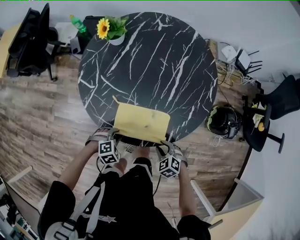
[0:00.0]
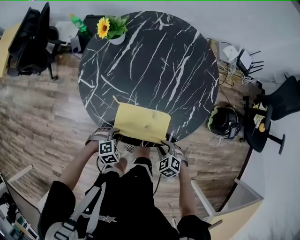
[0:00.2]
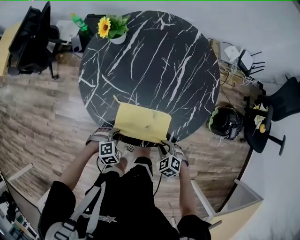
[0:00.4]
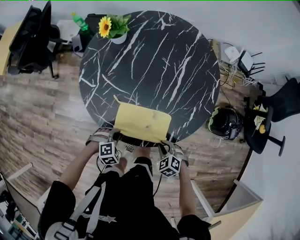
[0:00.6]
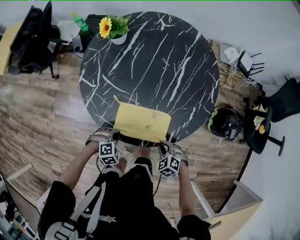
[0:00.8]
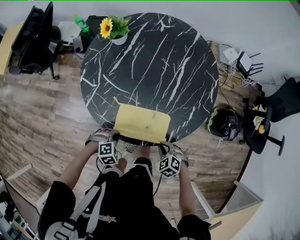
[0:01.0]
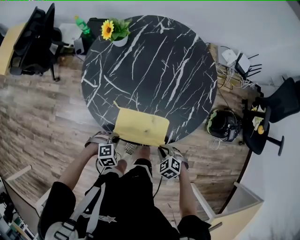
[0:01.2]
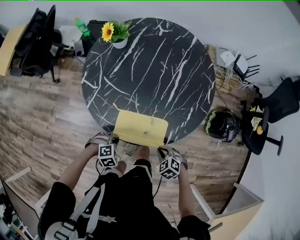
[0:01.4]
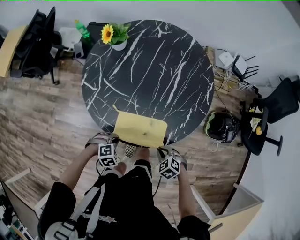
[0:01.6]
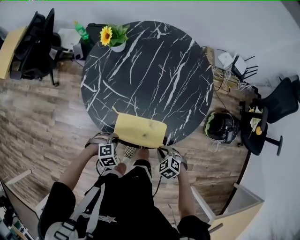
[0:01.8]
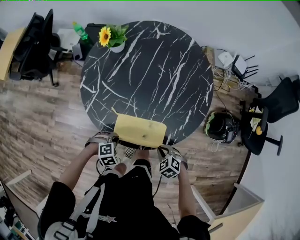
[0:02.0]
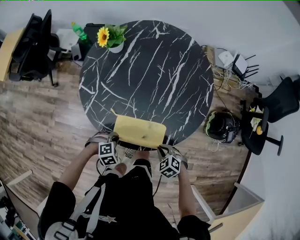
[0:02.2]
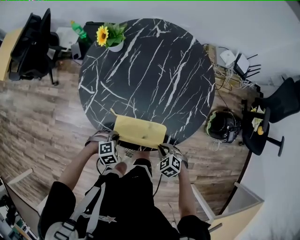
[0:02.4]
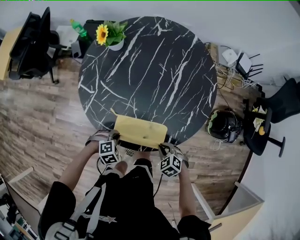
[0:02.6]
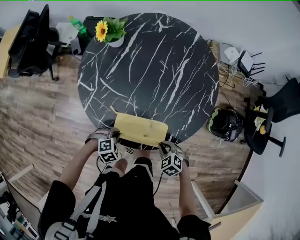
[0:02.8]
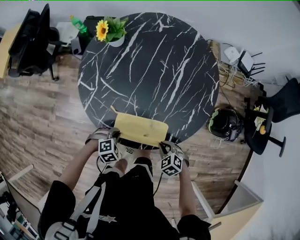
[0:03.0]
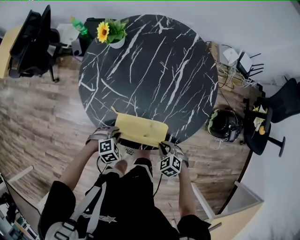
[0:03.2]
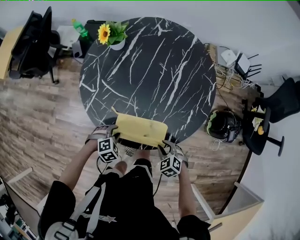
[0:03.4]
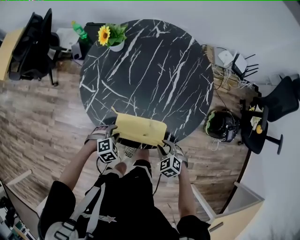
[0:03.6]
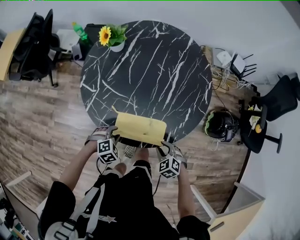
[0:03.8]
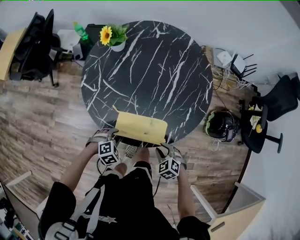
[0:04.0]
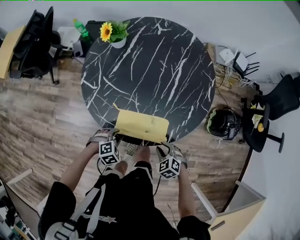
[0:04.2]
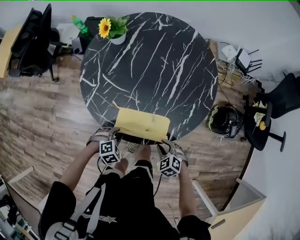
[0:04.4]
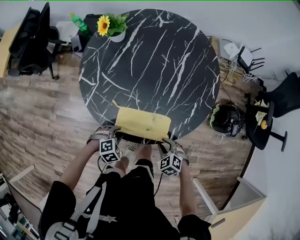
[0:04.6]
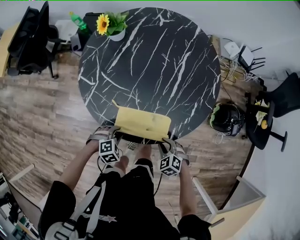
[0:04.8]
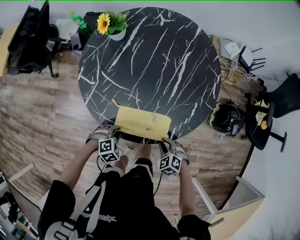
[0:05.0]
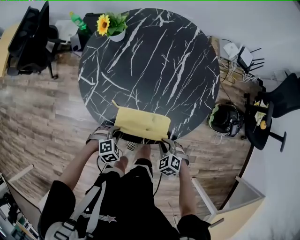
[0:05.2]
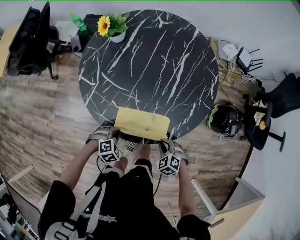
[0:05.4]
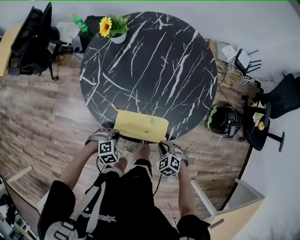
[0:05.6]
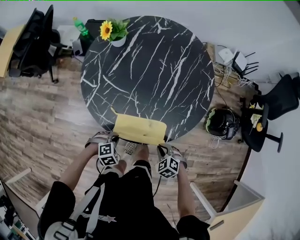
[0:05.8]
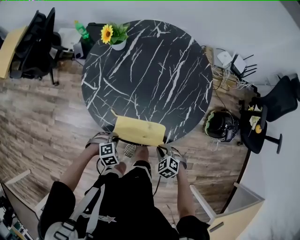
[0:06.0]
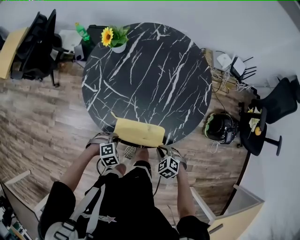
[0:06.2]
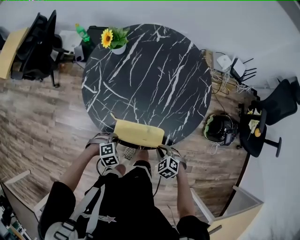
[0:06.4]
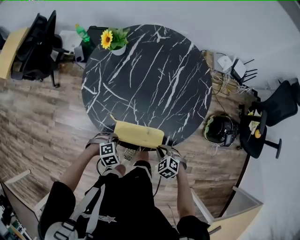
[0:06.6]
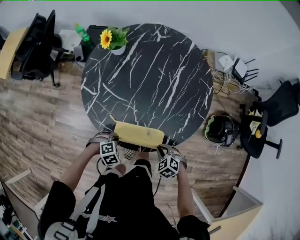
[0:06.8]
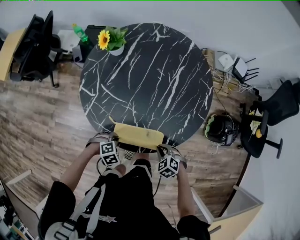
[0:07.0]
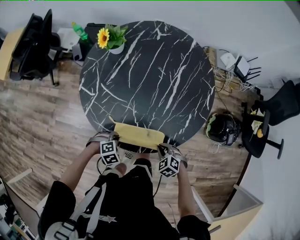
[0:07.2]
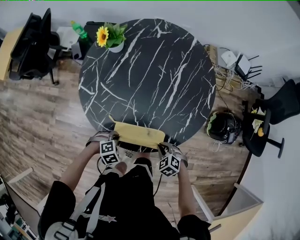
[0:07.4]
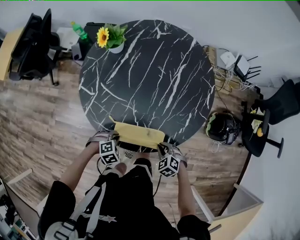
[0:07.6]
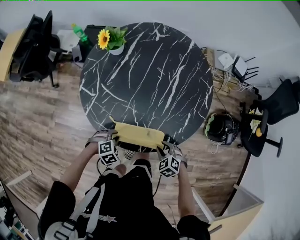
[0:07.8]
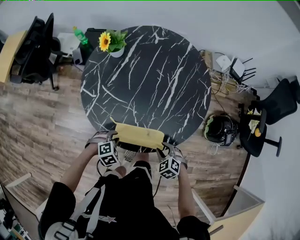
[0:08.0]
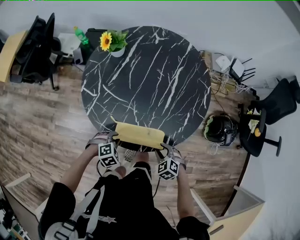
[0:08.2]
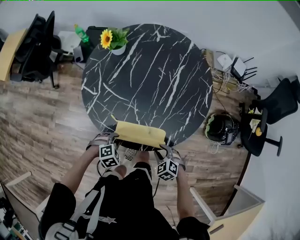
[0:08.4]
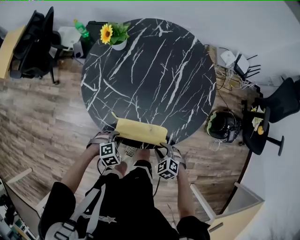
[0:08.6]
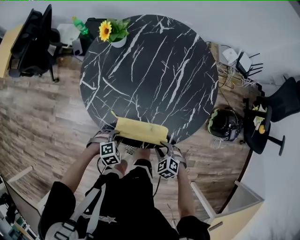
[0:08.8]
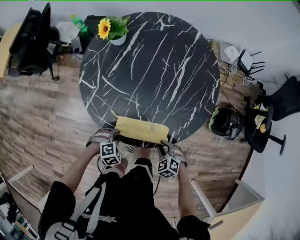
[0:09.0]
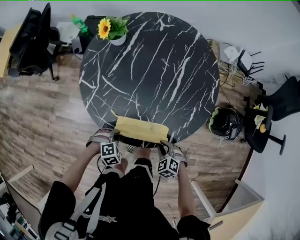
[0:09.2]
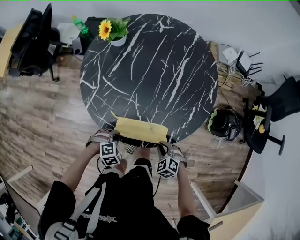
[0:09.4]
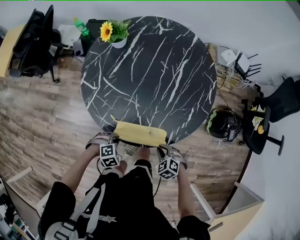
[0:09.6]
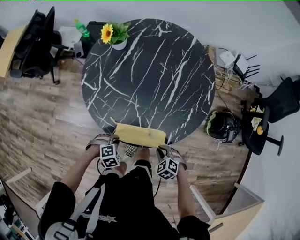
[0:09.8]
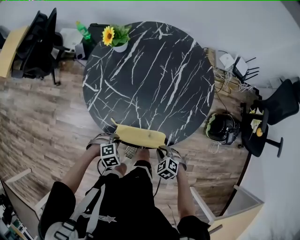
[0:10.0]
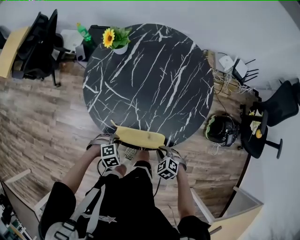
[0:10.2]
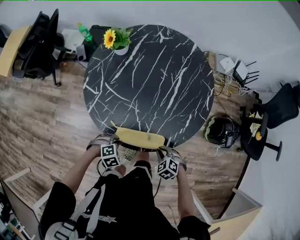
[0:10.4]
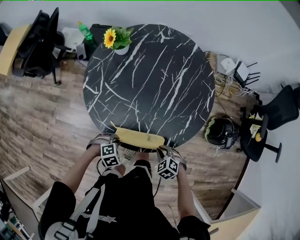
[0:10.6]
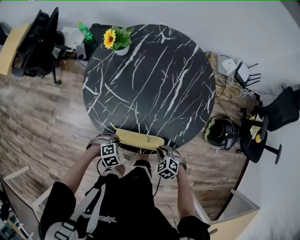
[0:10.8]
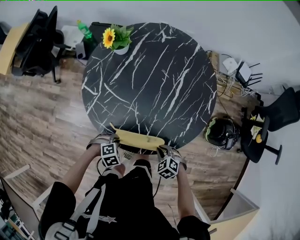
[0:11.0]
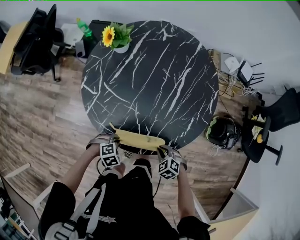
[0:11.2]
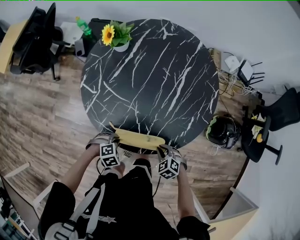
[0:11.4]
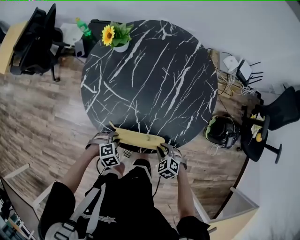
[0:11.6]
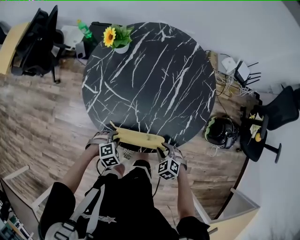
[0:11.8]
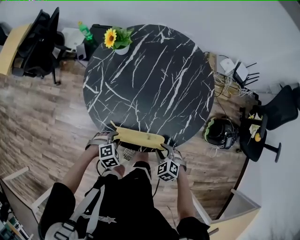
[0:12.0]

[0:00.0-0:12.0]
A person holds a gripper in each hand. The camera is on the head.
0:00.0 to 0:01.6: The right gripper closes. The left gripper closes up.
0:01.6 to 0:03.0: The grippers make only small movements.
0:03.0 to 0:04.4: The right gripper opens, while the left gripper opens.
0:04.4 to 0:06.0: The left gripper closes its fingers, while the right gripper closes.
0:06.0 to 0:07.6: The right gripper moves some 5 cm.
0:07.6 to 0:12.0: The grippers make only small movements.

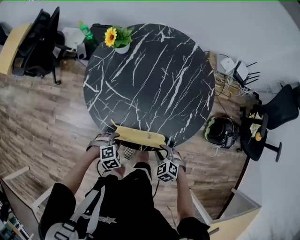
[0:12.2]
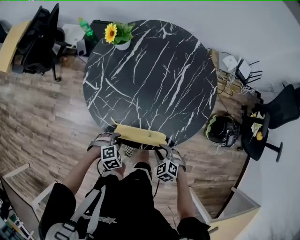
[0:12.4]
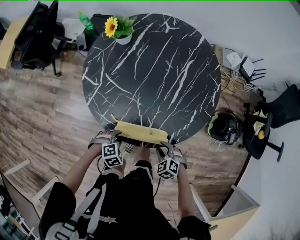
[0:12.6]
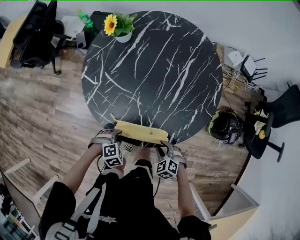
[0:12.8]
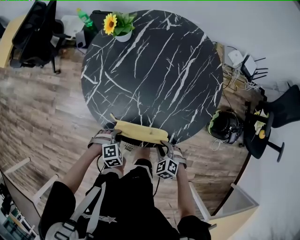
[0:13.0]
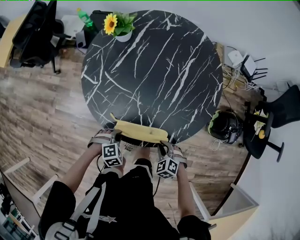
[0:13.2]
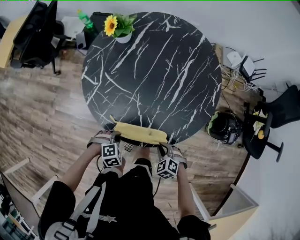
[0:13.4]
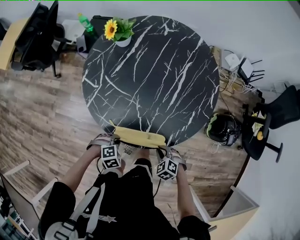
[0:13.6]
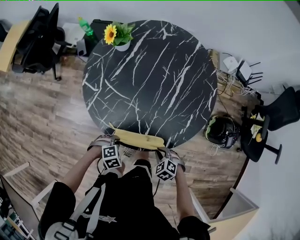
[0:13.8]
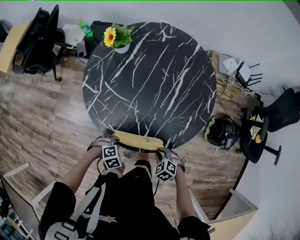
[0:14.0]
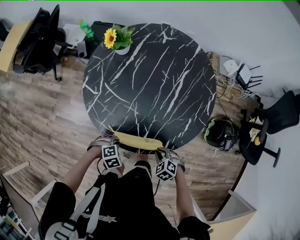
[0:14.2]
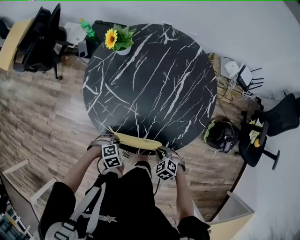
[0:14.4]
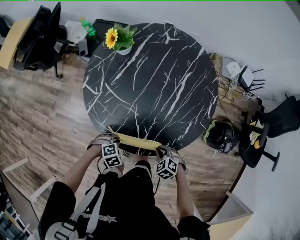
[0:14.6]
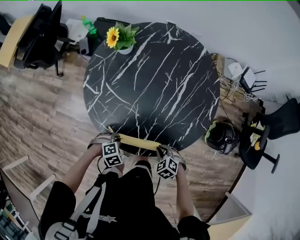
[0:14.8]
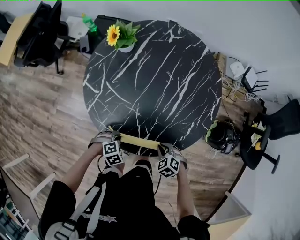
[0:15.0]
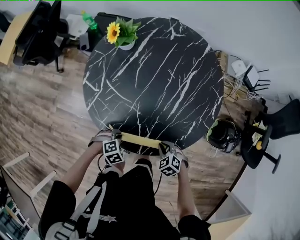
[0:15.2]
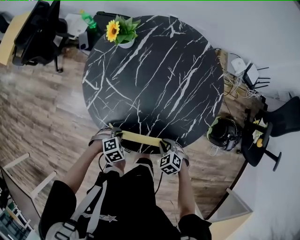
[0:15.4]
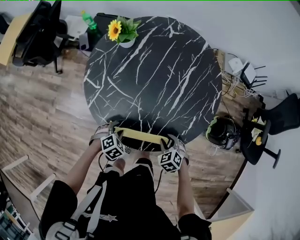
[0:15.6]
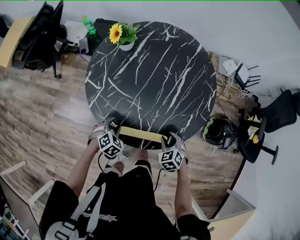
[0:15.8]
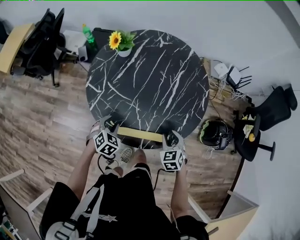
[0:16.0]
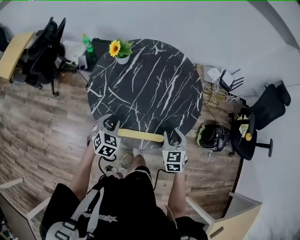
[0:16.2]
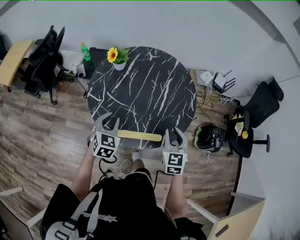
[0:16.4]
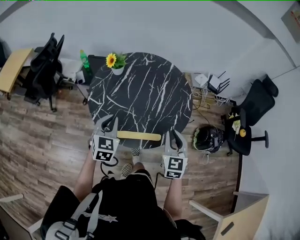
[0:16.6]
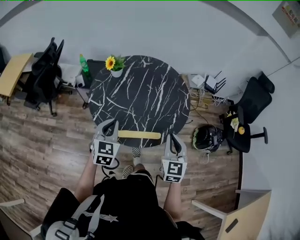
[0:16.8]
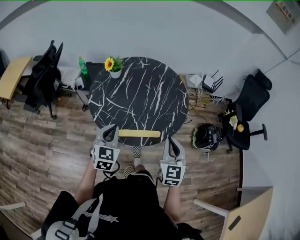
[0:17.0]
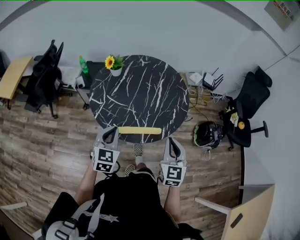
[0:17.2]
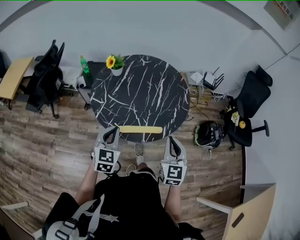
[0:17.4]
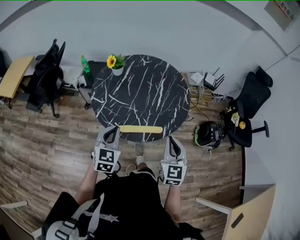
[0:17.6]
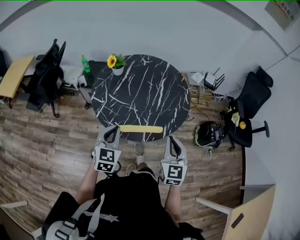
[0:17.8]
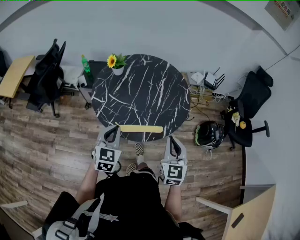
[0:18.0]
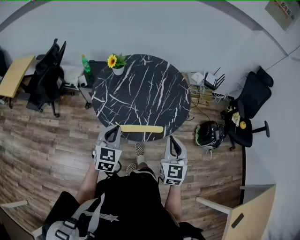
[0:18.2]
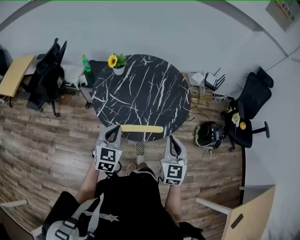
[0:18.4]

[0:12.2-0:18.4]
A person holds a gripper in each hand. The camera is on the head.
0:12.2 to 0:13.8: The right gripper closes.
0:13.8 to 0:15.4: The right gripper shifts by approximately 10 cm; the left gripper moves approximately 5 cm.
0:15.4 to 0:16.8: The two grippers go some 30 cm upward. The right gripper angles its fingers upward, by about 50 degrees, and opens and closes again. The left gripper angles its fingers upward, by roughly 60 degrees, and opens, then closes again.
0:16.8 to 0:18.4: Both grippers move backward, roughly 5 cm.

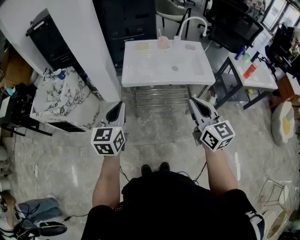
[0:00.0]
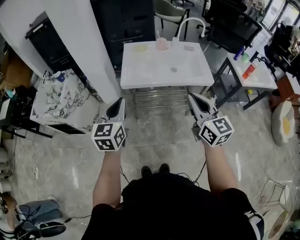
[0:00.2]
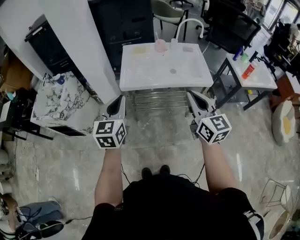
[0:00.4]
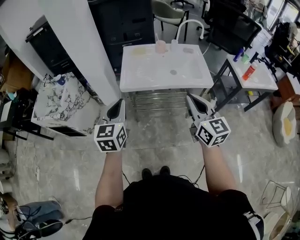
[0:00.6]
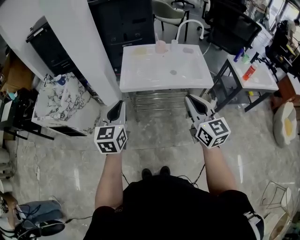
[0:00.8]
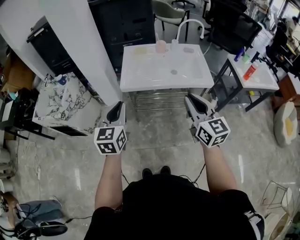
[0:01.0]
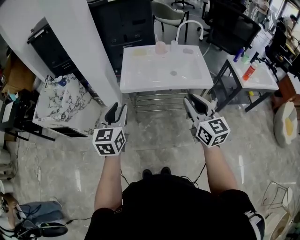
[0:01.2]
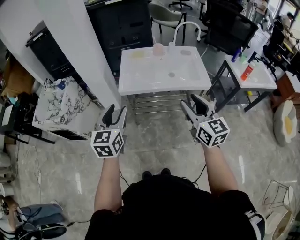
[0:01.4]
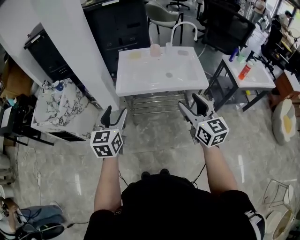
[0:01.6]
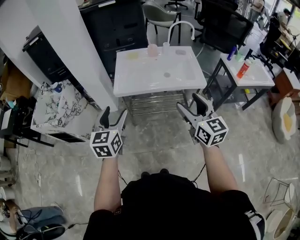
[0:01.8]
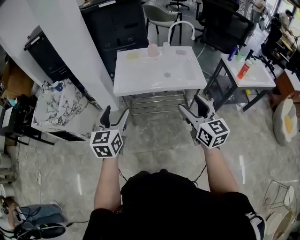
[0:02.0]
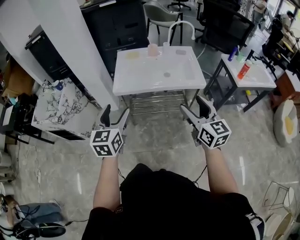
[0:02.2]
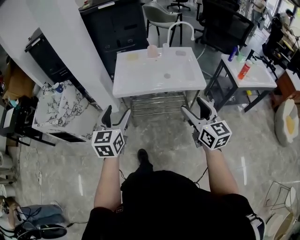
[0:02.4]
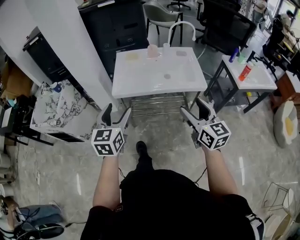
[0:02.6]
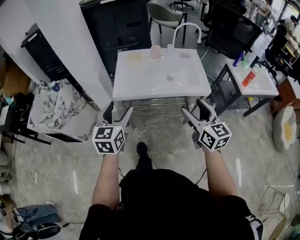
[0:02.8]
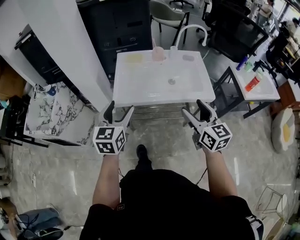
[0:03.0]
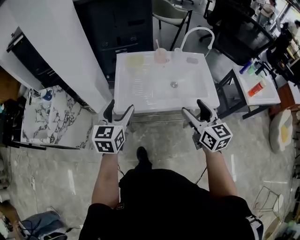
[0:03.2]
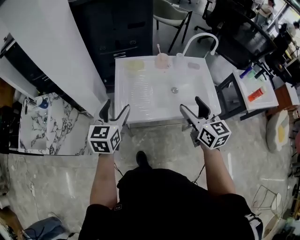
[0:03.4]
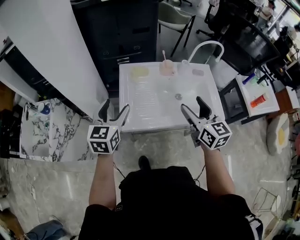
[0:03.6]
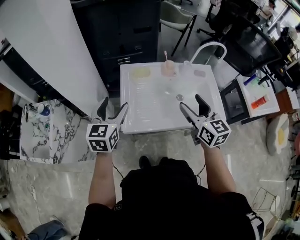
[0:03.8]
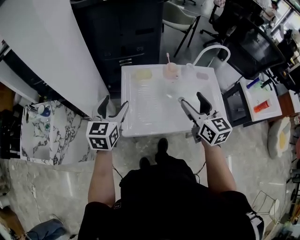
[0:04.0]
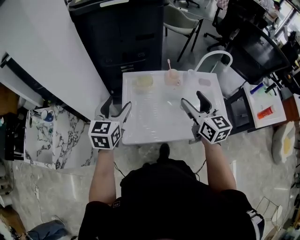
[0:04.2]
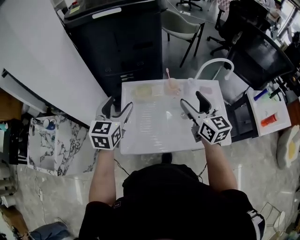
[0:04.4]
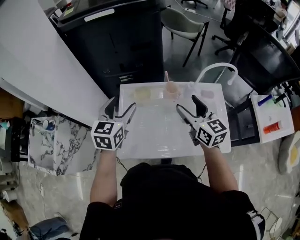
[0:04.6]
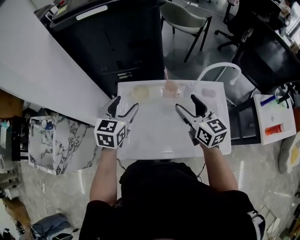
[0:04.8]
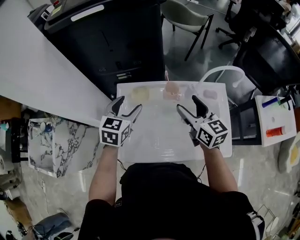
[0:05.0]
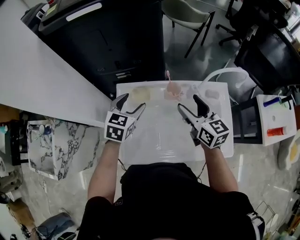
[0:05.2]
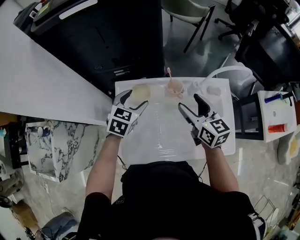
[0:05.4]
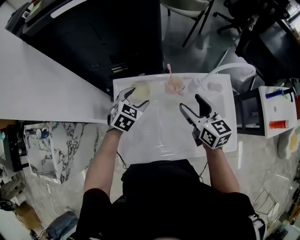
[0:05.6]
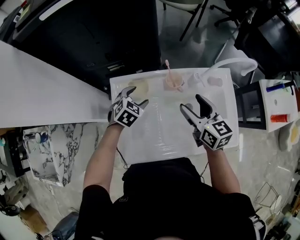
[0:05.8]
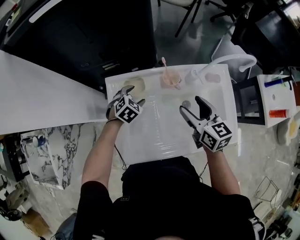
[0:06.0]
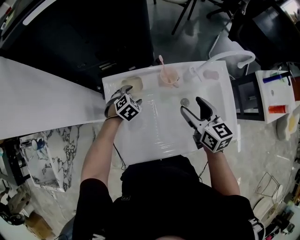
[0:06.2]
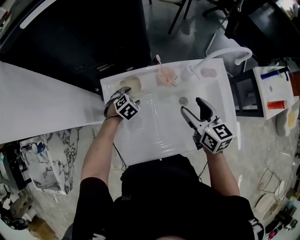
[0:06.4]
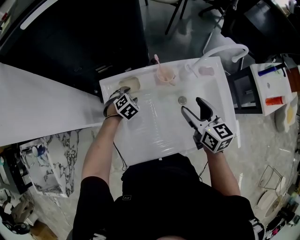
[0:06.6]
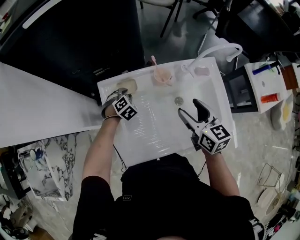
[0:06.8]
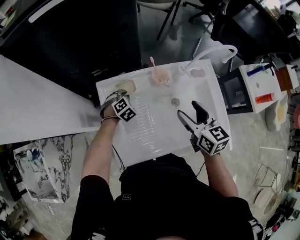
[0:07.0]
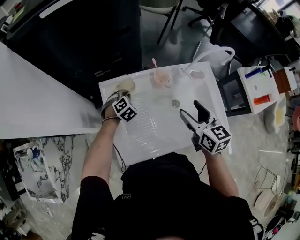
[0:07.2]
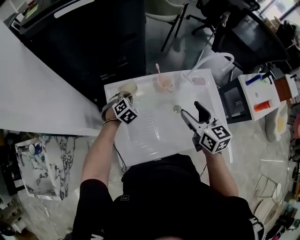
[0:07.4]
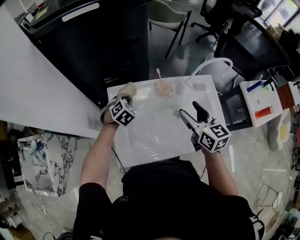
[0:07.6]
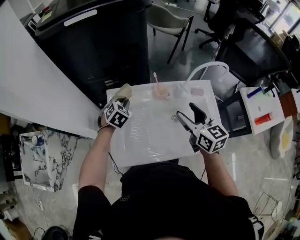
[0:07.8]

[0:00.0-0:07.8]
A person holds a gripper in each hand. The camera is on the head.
0:00.0 to 0:01.6: The right gripper opens, while the left gripper opens its fingers.
0:01.6 to 0:03.2: The two grippers go some 20 cm forward.
0:03.2 to 0:04.6: The two grippers go approximately 30 cm forward.
0:04.6 to 0:06.2: The right gripper moves downward, approximately 10 cm; the left gripper is displaced downward by roughly 30 cm, and points its fingers roughly 40 degrees further downward.
0:06.2 to 0:07.8: The right gripper is displaced upward by some 10 cm, while the left gripper shifts approximately 15 cm upward, and closes.
